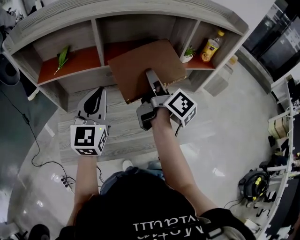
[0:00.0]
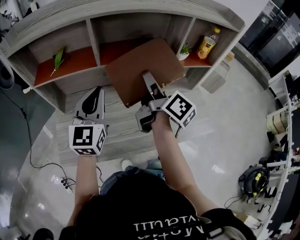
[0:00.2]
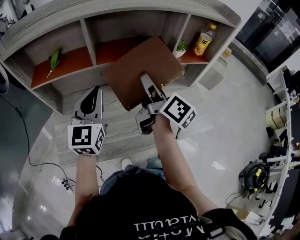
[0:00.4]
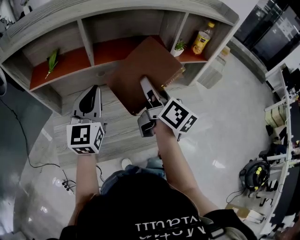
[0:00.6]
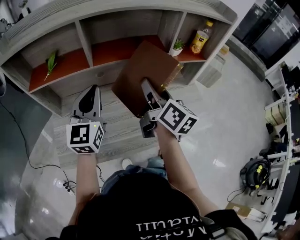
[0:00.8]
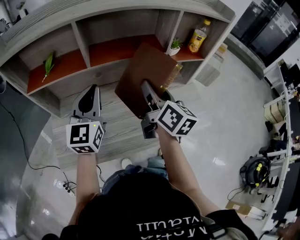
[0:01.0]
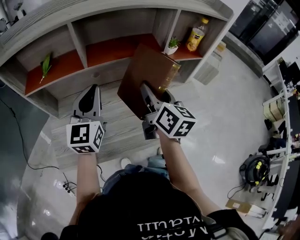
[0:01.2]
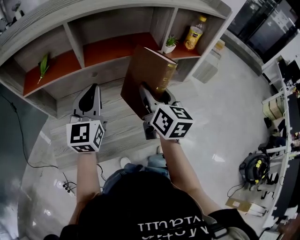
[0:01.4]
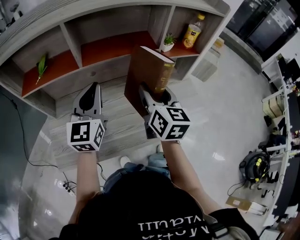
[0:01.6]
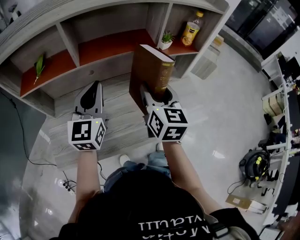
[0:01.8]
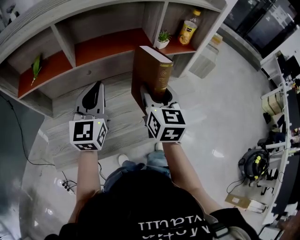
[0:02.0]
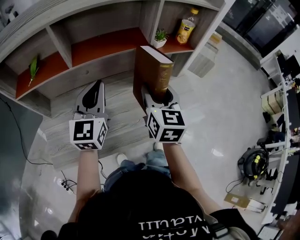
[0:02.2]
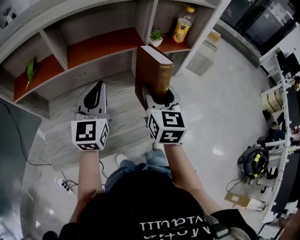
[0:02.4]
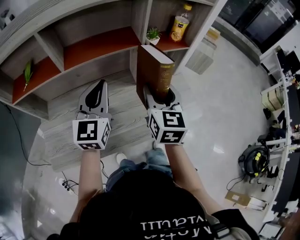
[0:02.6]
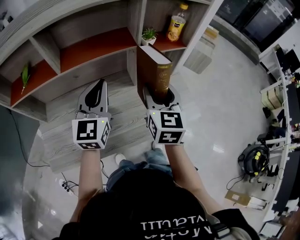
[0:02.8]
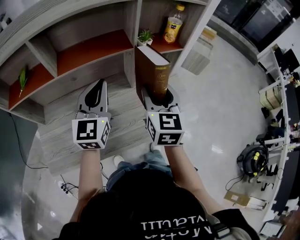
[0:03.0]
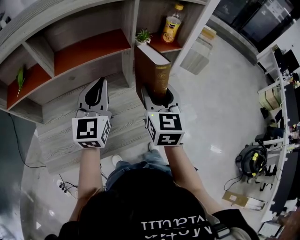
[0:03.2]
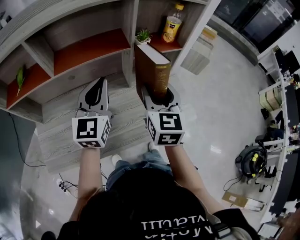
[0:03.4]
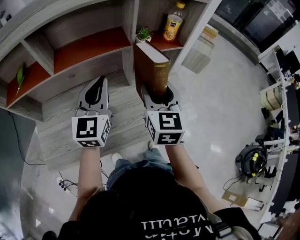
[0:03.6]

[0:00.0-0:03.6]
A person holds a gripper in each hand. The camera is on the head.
0.0 to 1.8 s: The right gripper travels to the right and backward by approximately 10 cm, and rolls counterclockwise, seen from behind, by some 60 degrees, while the left gripper moves to the right, some 5 cm.
1.8 to 3.6 s: The two grippers go approximately 10 cm to the right.

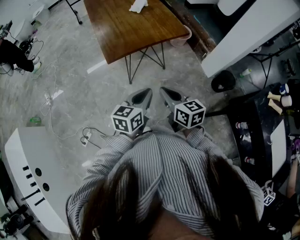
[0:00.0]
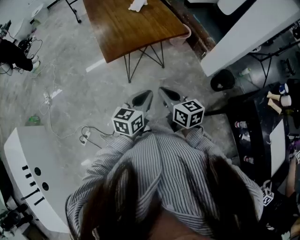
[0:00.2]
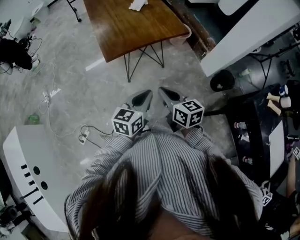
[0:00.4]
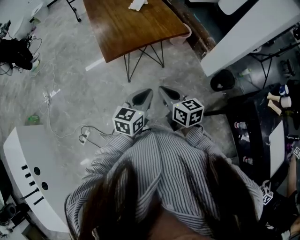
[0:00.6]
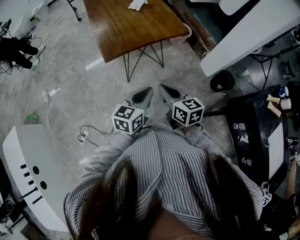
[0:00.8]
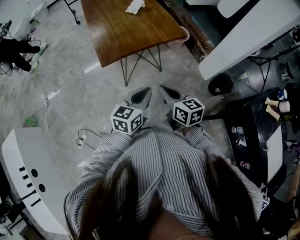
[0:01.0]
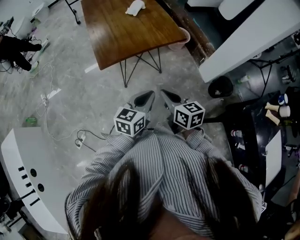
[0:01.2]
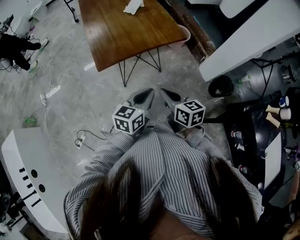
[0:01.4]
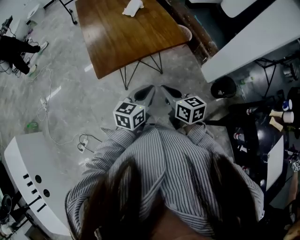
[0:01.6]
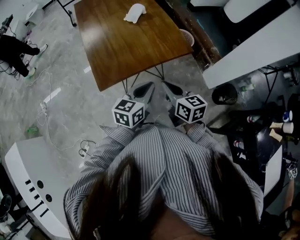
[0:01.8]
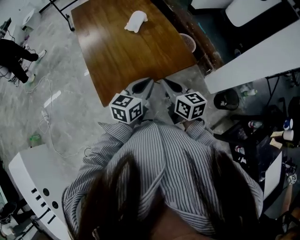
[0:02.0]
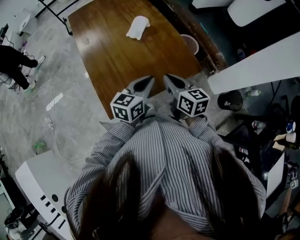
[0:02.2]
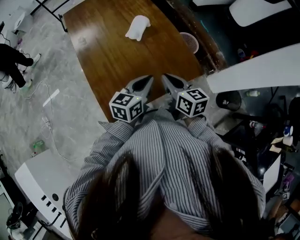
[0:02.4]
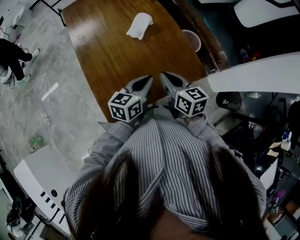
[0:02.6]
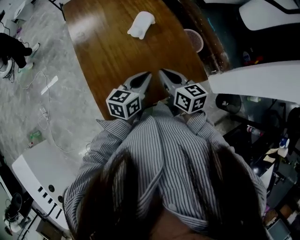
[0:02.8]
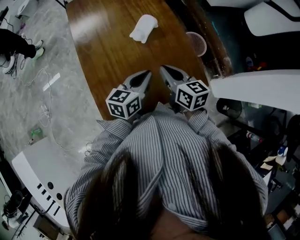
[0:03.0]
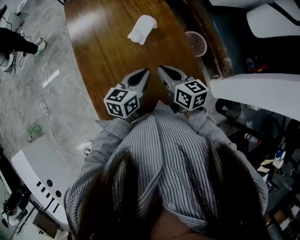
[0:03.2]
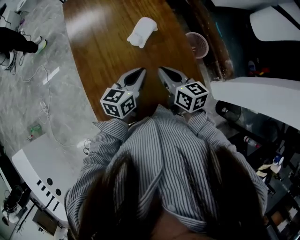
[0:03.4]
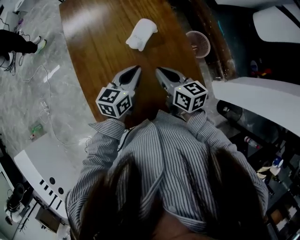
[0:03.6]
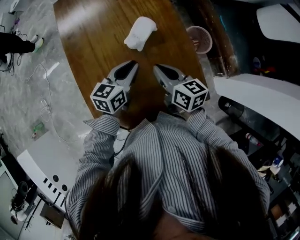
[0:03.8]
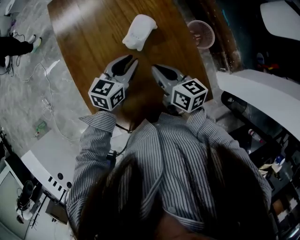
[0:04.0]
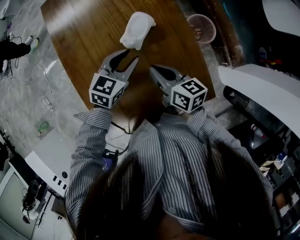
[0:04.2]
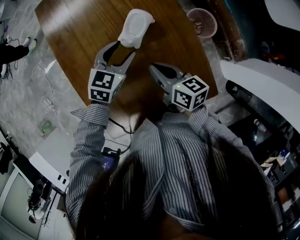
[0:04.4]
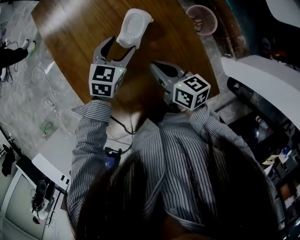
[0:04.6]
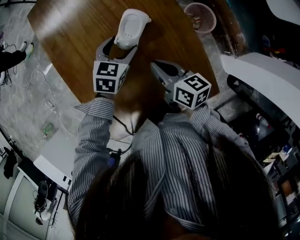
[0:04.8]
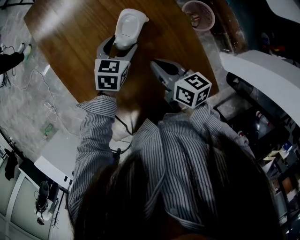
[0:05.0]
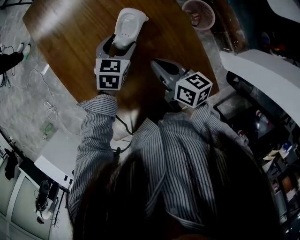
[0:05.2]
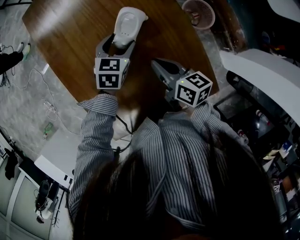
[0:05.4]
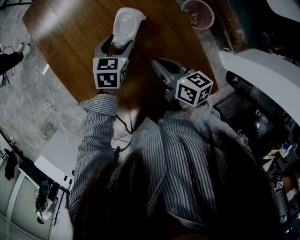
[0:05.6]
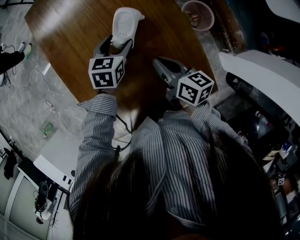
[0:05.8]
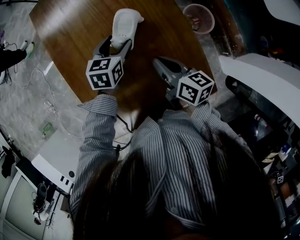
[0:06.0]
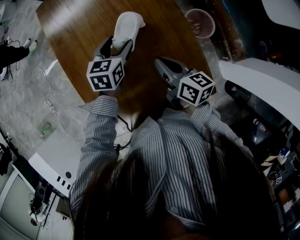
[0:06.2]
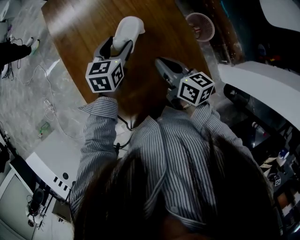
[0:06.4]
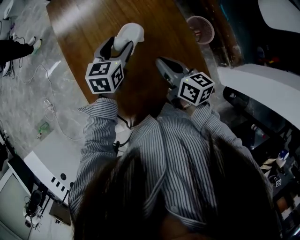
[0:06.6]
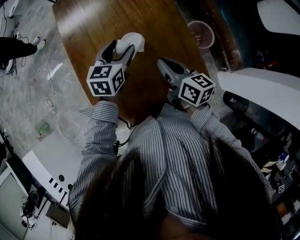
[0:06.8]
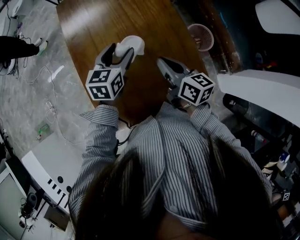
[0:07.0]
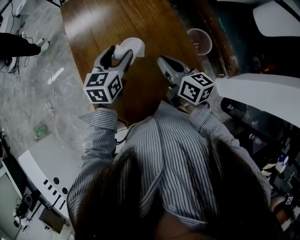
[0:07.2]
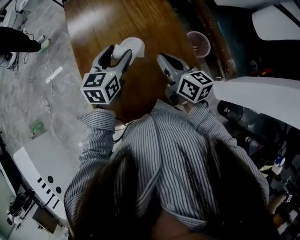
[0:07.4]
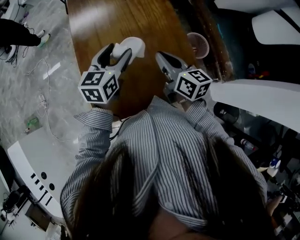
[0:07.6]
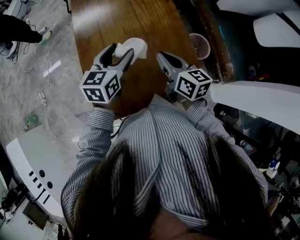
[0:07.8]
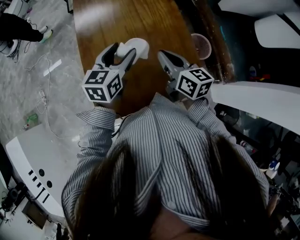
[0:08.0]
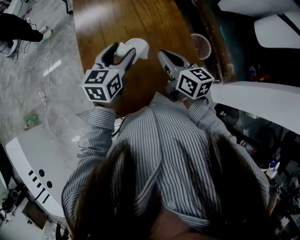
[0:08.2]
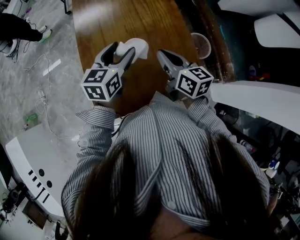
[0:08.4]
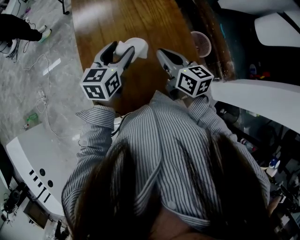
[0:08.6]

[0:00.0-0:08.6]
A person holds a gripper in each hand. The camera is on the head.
0.0 to 1.4 s: The right gripper travels forward by roughly 10 cm. Meanwhile the left gripper moves forward and to the right, about 10 cm.
1.4 to 2.8 s: The pair of grippers is taken forward, some 40 cm.
2.8 to 4.4 s: The left gripper goes about 25 cm forward, turns by some 30 degrees, and opens, while the right gripper is displaced forward and downward by about 15 cm.
4.4 to 5.8 s: The left gripper moves about 5 cm.
5.8 to 7.2 s: The right gripper goes about 10 cm upward. Meanwhile the left gripper heads upward and backward, covering approximately 20 cm, and turns by some 20 degrees.
7.2 to 8.6 s: The left gripper changes place by about 5 cm.

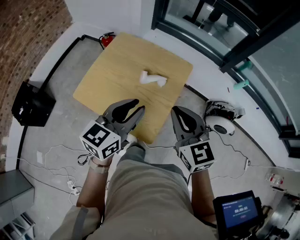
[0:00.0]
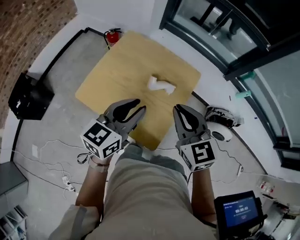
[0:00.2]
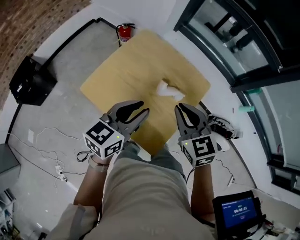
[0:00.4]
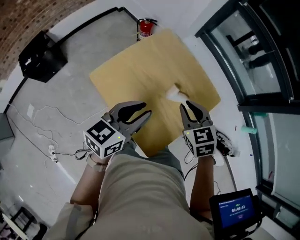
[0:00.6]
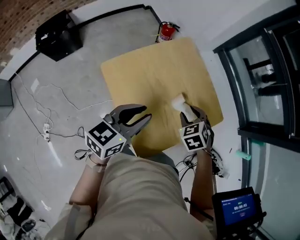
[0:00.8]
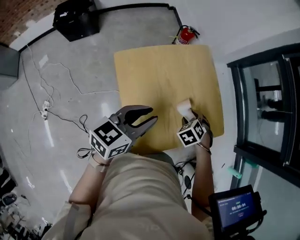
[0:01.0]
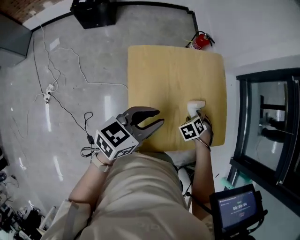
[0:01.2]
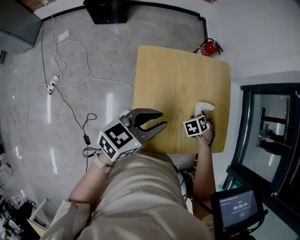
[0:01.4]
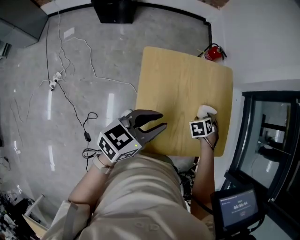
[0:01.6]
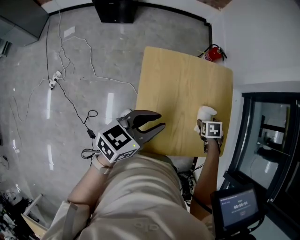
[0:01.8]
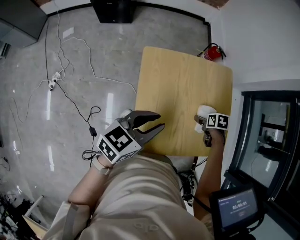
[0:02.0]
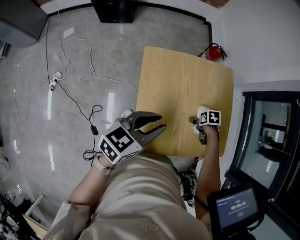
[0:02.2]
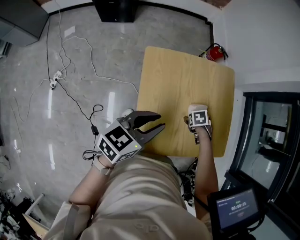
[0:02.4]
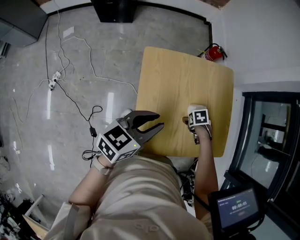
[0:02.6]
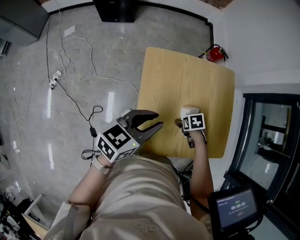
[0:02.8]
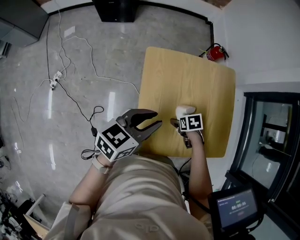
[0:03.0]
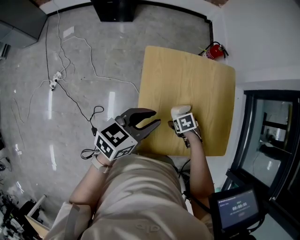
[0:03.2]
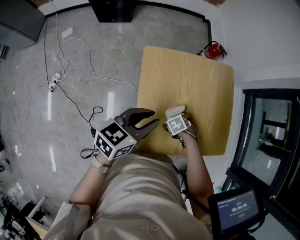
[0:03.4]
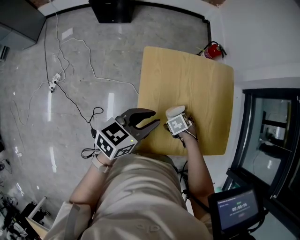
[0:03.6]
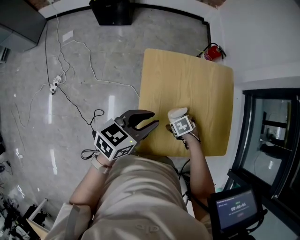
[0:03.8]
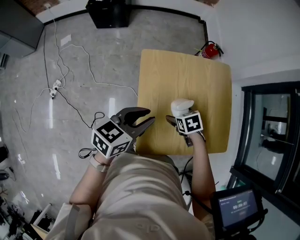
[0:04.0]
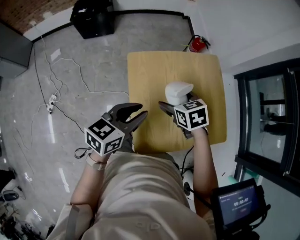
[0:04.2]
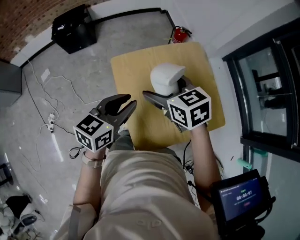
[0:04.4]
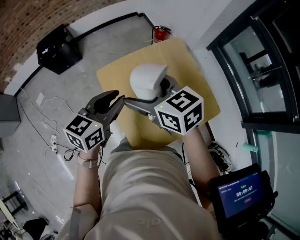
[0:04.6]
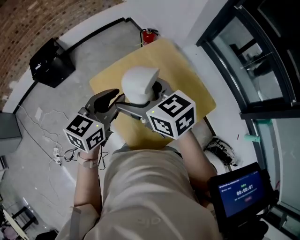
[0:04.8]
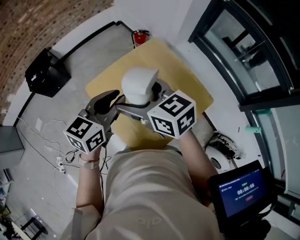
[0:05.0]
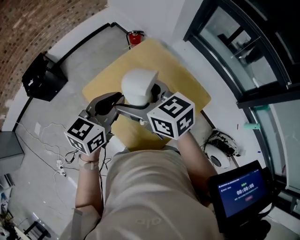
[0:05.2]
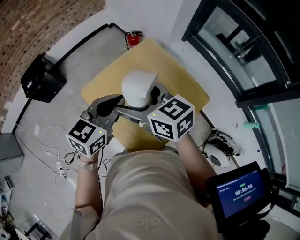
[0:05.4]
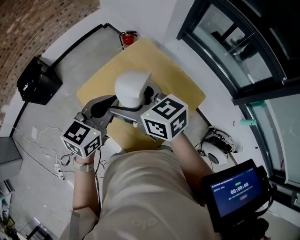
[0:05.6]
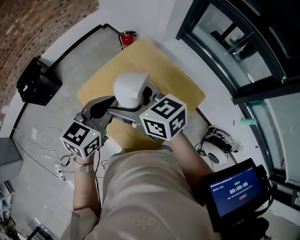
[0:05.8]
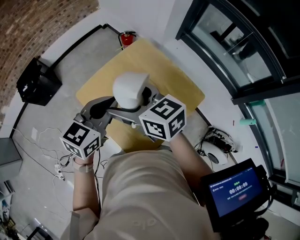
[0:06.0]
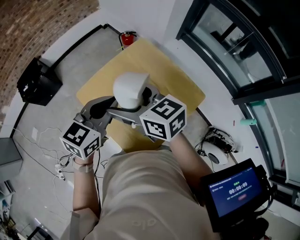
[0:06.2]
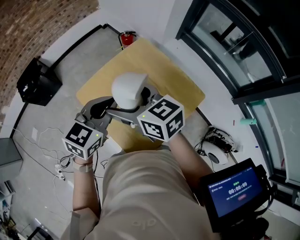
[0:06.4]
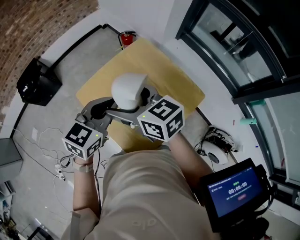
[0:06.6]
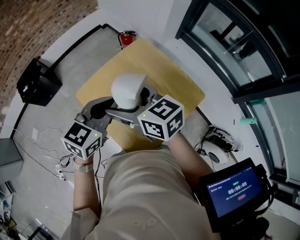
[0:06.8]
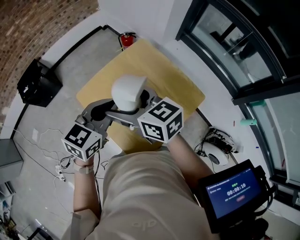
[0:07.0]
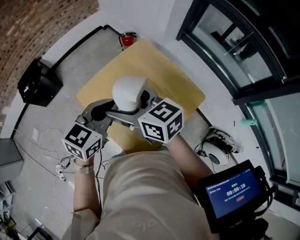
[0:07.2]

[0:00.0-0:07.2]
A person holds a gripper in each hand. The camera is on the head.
0.0 to 1.4 s: The left gripper travels to the left, downward and forward by approximately 15 cm, and rotates roughly 40 degrees. The right gripper is displaced downward and forward by roughly 40 cm, tilts its fingers about 50 degrees downward, and opens up.
1.4 to 2.8 s: The right gripper shifts by approximately 10 cm, swivels roughly 40 degrees, and opens its fingers.
2.8 to 4.4 s: The right gripper goes approximately 30 cm upward, and angles its fingers upward, by approximately 40 degrees. The left gripper ends up approximately 5 cm from where it was.
4.4 to 5.8 s: The left gripper moves to the right and upward, roughly 15 cm, swivels some 30 degrees, and closes; the right gripper heads upward and to the right, covering approximately 10 cm, and swivels approximately 30 degrees.
5.8 to 7.2 s: The grippers move only a little.

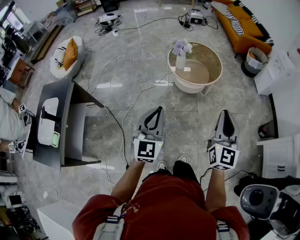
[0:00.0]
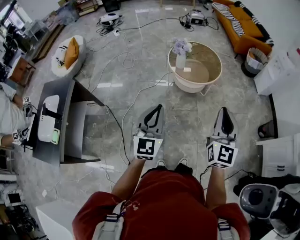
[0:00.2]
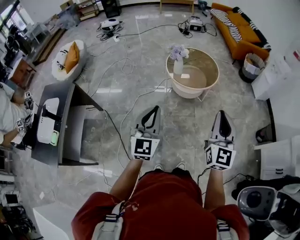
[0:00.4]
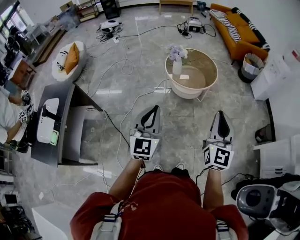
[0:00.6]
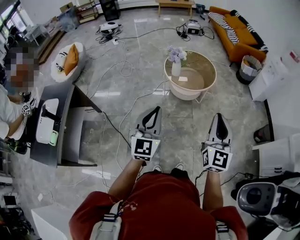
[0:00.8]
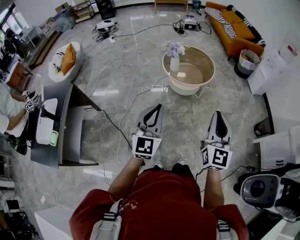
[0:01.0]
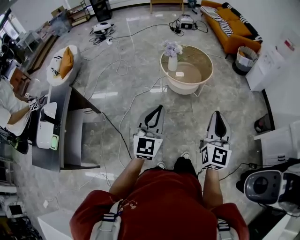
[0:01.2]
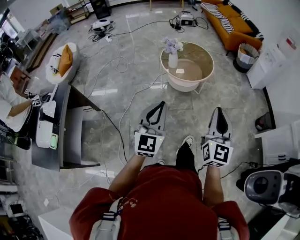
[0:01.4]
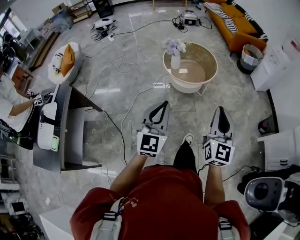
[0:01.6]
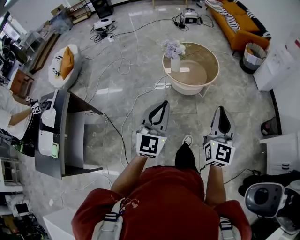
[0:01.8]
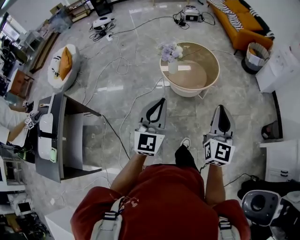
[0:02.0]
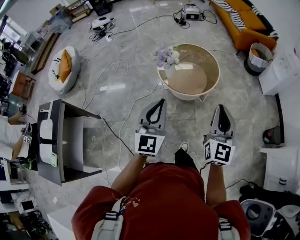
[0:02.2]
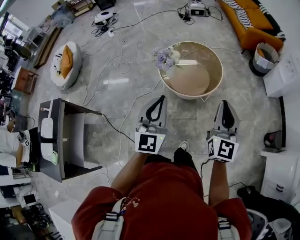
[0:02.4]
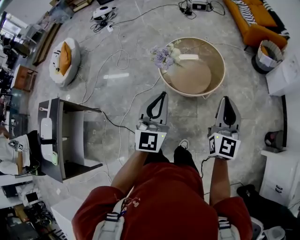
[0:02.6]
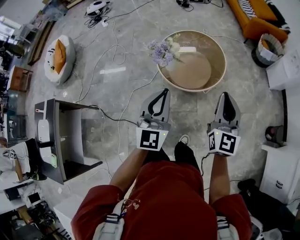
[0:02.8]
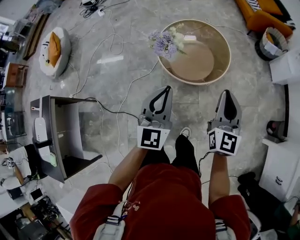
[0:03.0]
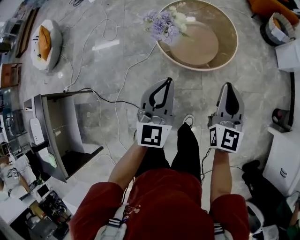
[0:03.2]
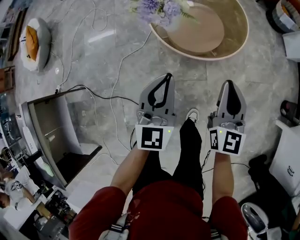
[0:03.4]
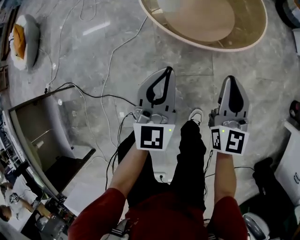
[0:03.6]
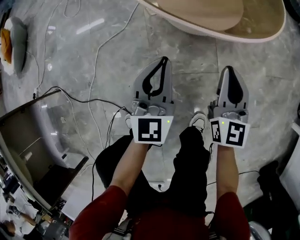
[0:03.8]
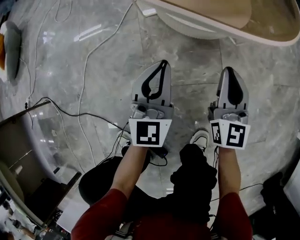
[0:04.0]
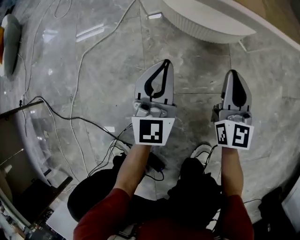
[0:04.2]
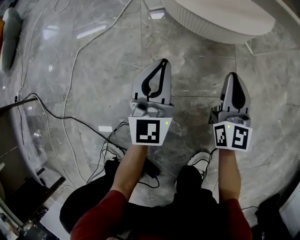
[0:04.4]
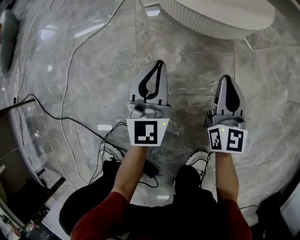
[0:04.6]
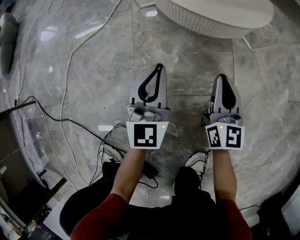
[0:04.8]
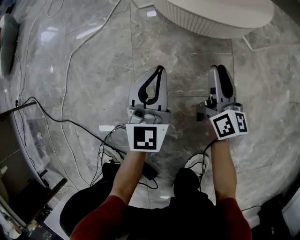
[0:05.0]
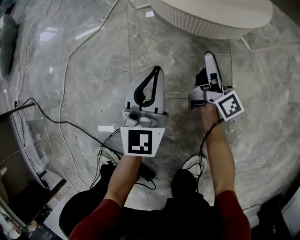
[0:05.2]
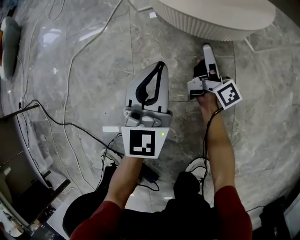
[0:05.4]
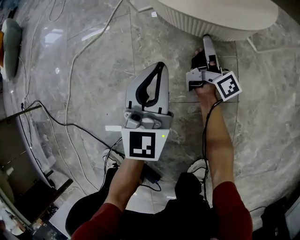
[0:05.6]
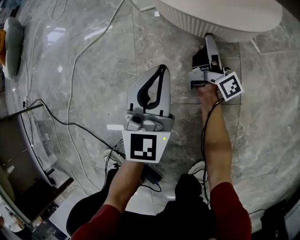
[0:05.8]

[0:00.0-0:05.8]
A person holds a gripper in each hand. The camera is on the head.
0.0 to 1.4 s: The right gripper travels backward by about 5 cm. The left gripper ends up approximately 5 cm from where it was.
1.4 to 2.8 s: The two grippers go some 40 cm forward.
2.8 to 4.4 s: Both grippers travel together downward, some 80 cm.
4.4 to 5.8 s: The right gripper travels forward and downward by roughly 20 cm, rolls clockwise, seen from behind, by about 70 degrees, and opens its fingers.
